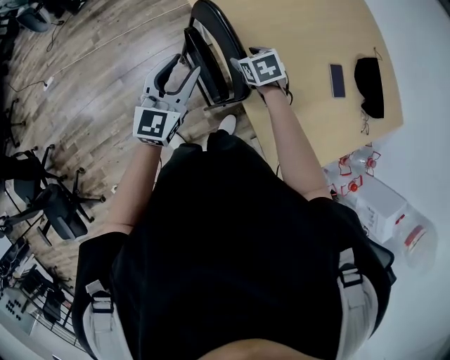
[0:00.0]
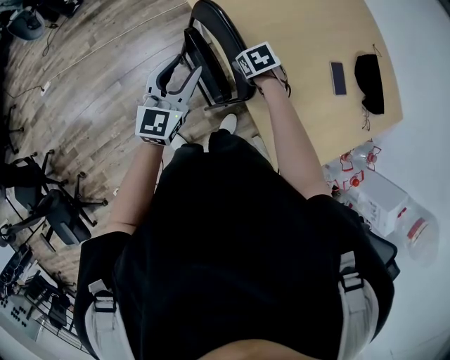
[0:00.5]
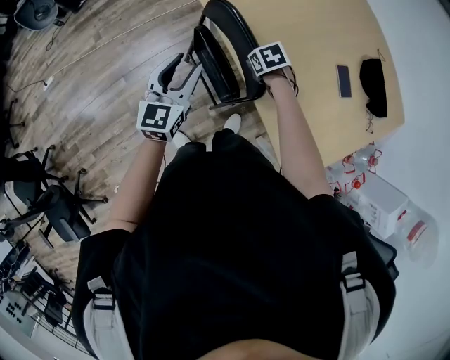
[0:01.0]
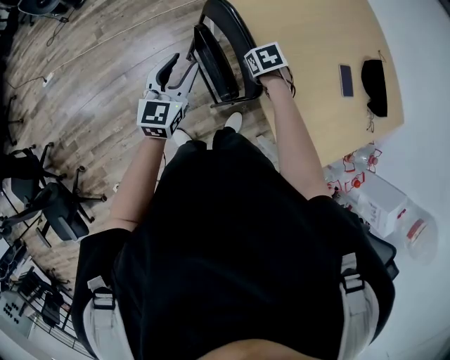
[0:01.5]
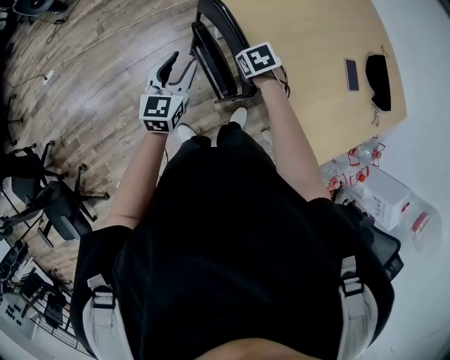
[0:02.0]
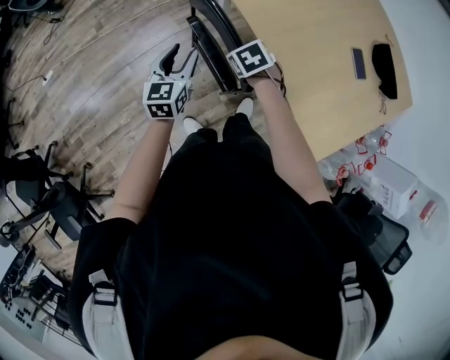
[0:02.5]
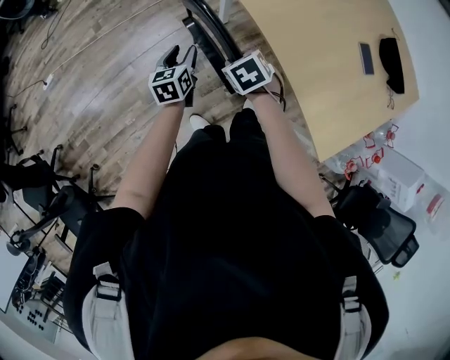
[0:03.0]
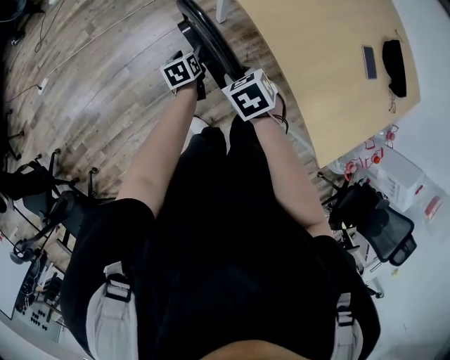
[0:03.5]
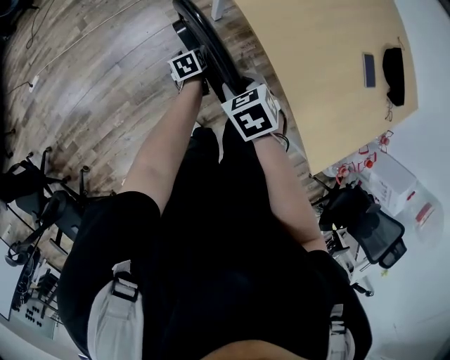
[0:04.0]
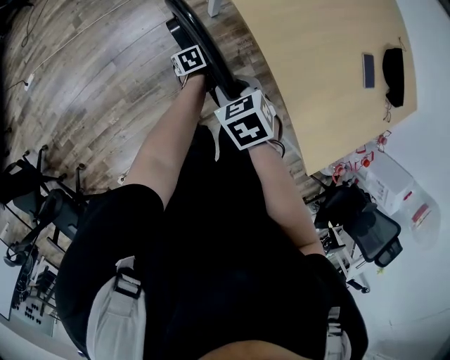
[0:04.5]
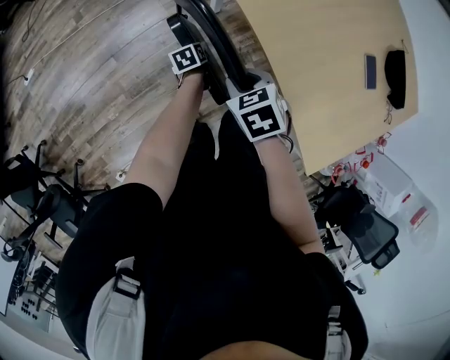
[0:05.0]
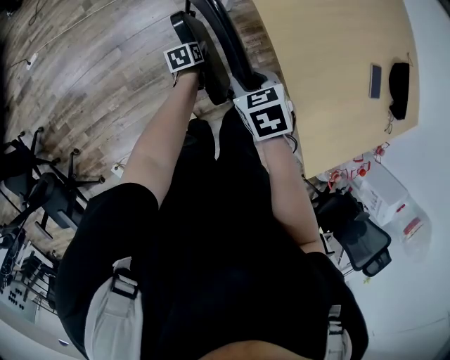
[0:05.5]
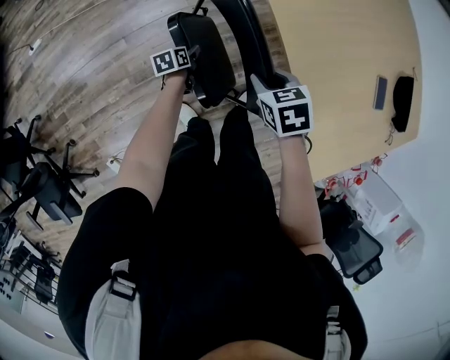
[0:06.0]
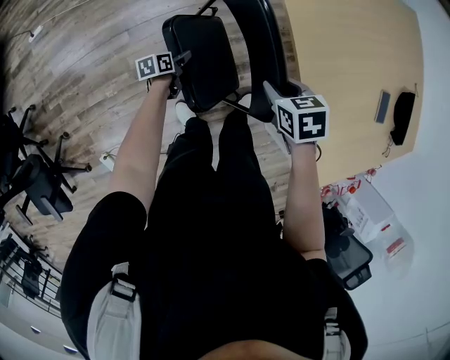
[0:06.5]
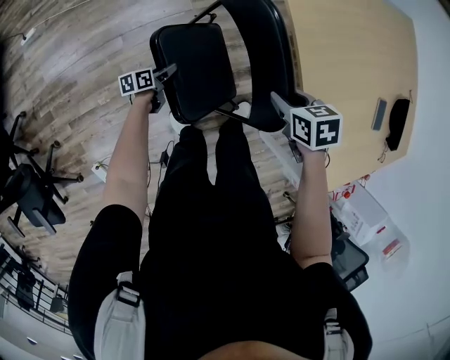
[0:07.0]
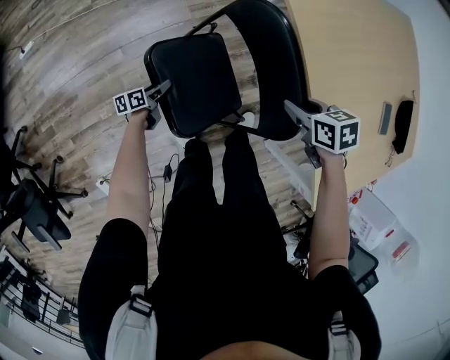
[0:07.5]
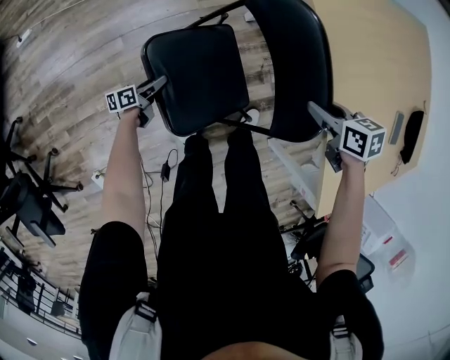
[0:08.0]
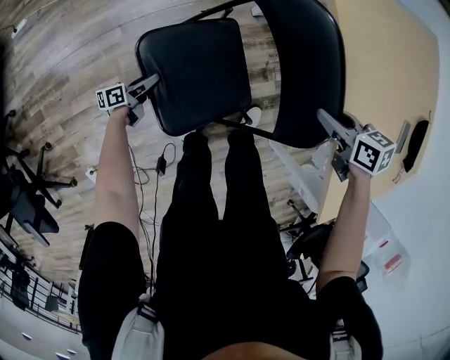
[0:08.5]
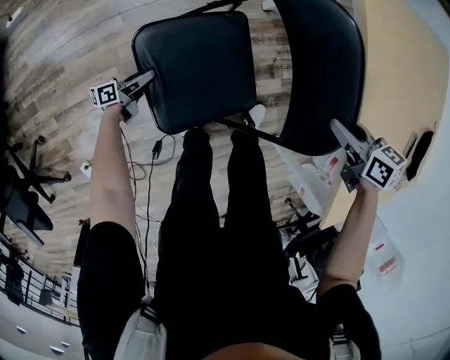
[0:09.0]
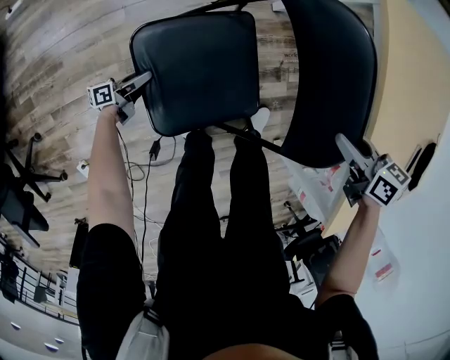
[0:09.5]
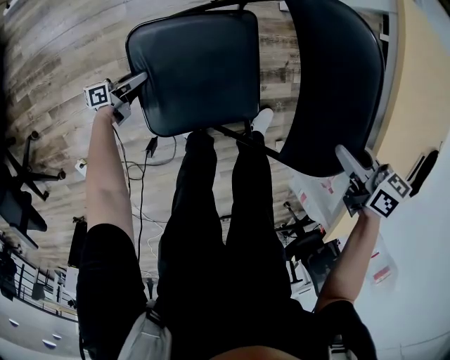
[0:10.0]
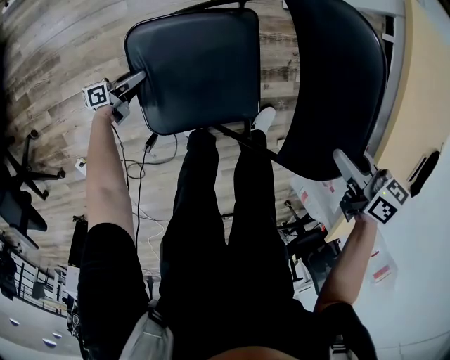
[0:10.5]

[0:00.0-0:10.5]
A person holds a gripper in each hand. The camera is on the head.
0:00.0 to 0:02.0: The right gripper moves to the left, roughly 10 cm, and closes up, while the left gripper moves to the left and downward, approximately 15 cm.
0:02.0 to 0:04.0: The right gripper shifts some 10 cm to the left. Meanwhile the left gripper is displaced downward by approximately 30 cm, tips its fingers downward by roughly 40 degrees, and opens its fingers.
0:04.0 to 0:06.5: The left gripper heads to the left, downward and backward, covering about 15 cm, and turns by roughly 20 degrees.
0:06.5 to 0:08.5: The left gripper heads downward and to the left, covering about 20 cm, and rotates some 20 degrees; the right gripper shifts roughly 10 cm downward.
0:08.5 to 0:10.5: The left gripper shifts about 15 cm downward and to the left, while the right gripper moves to the left and downward, approximately 10 cm.

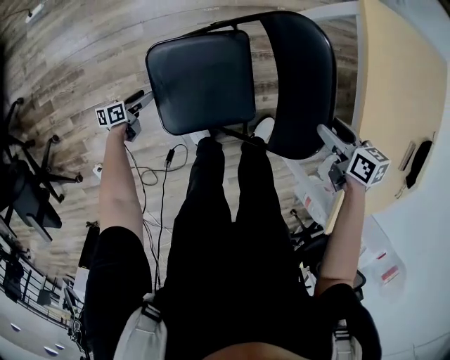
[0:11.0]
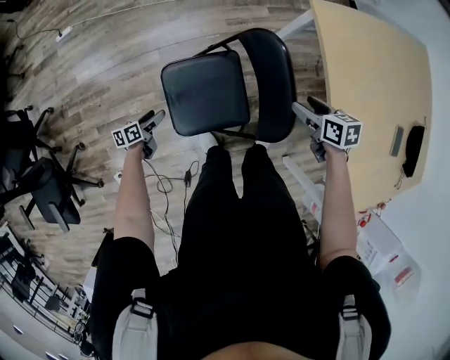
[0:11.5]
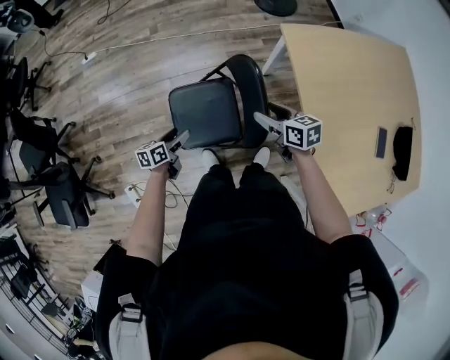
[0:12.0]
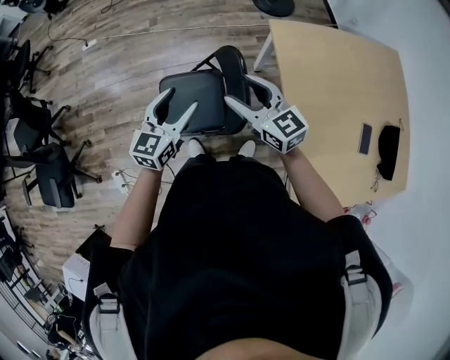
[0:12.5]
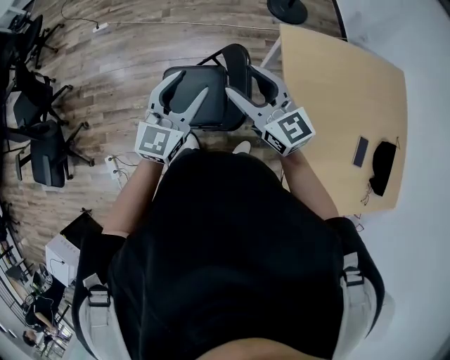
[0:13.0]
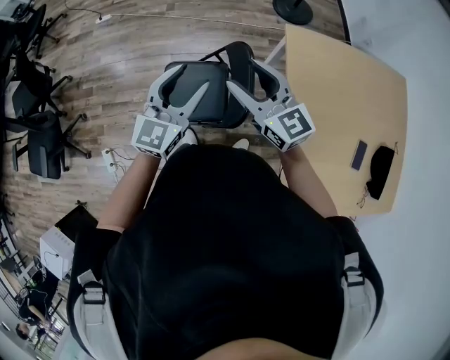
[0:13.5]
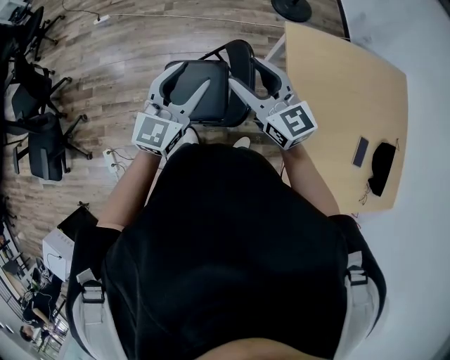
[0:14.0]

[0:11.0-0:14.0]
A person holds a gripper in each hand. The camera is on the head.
0:11.0 to 0:12.5: The right gripper travels upward by roughly 35 cm, and points its fingers some 40 degrees further upward, while the left gripper travels upward and to the right by roughly 70 cm, and twists some 50 degrees clockwise, seen from behind.
0:12.5 to 0:14.0: Both grippers move upward, about 5 cm.

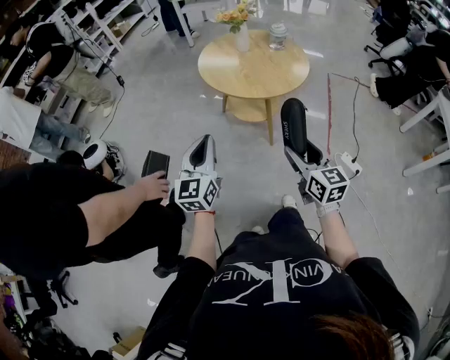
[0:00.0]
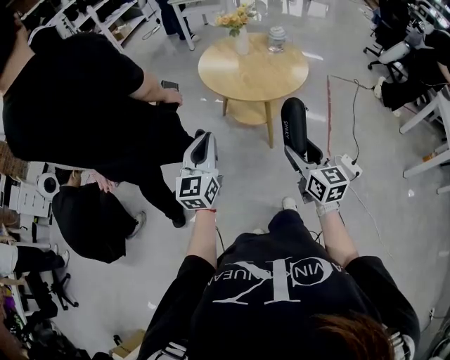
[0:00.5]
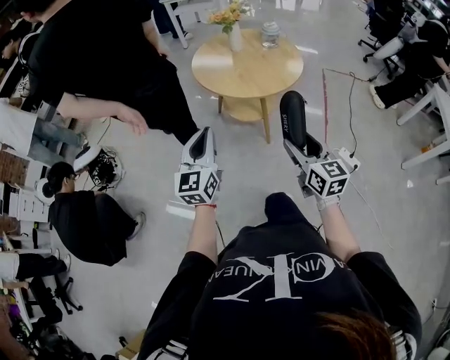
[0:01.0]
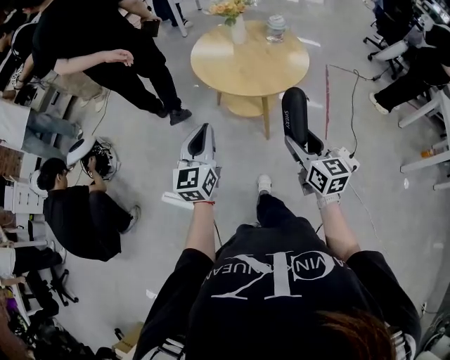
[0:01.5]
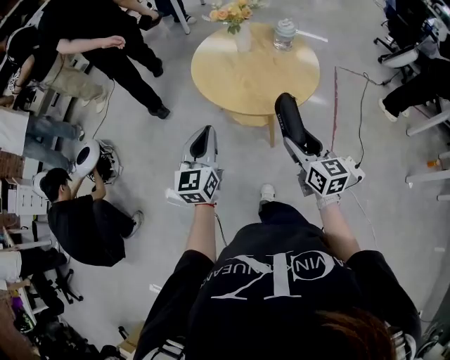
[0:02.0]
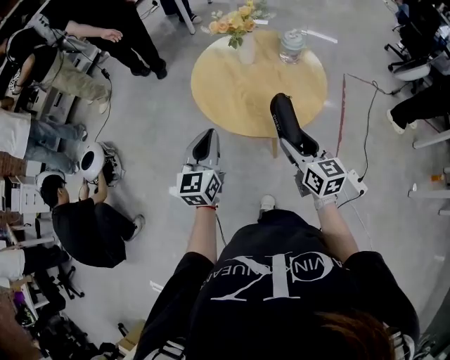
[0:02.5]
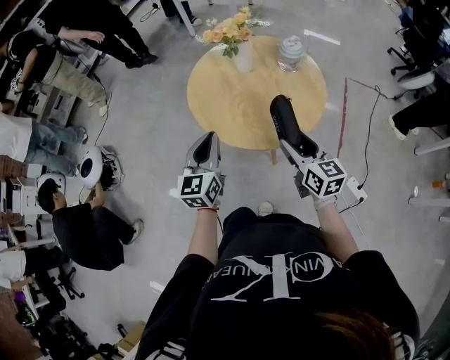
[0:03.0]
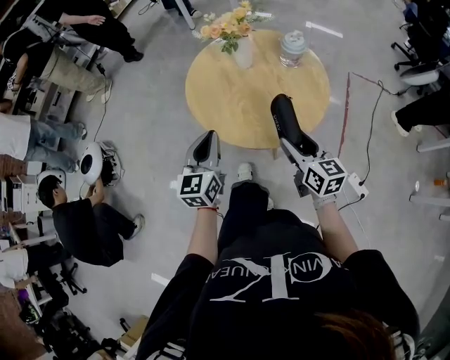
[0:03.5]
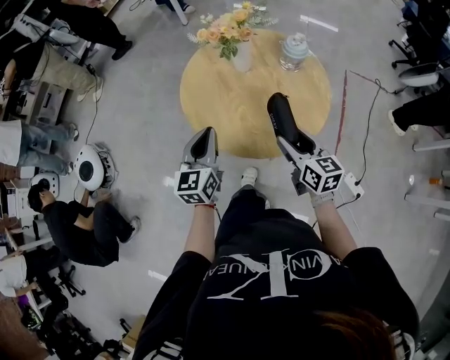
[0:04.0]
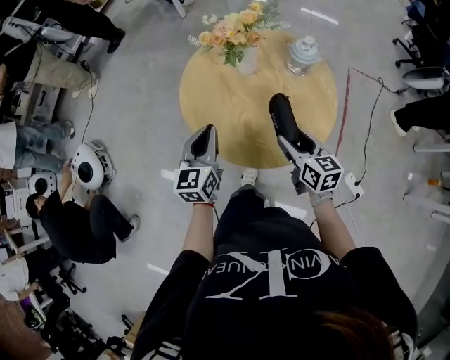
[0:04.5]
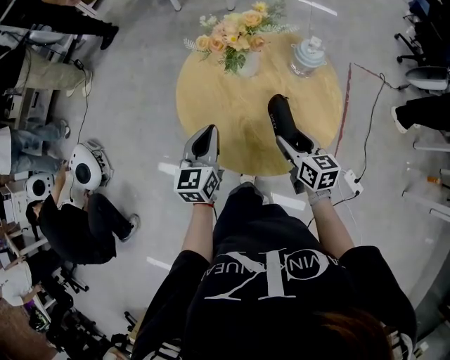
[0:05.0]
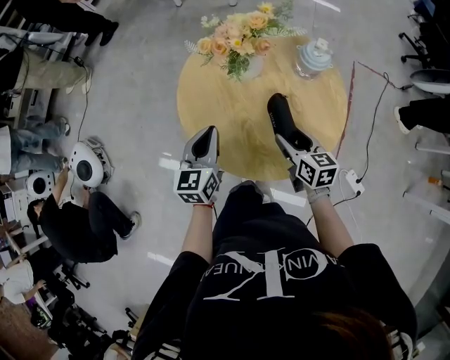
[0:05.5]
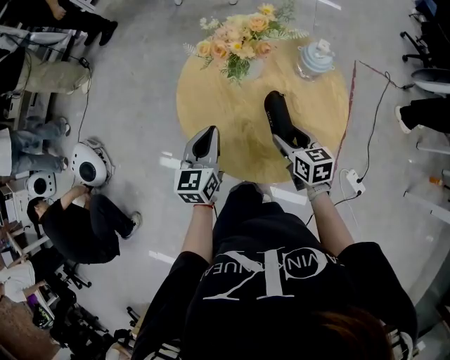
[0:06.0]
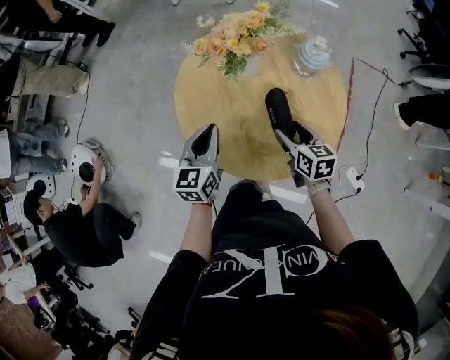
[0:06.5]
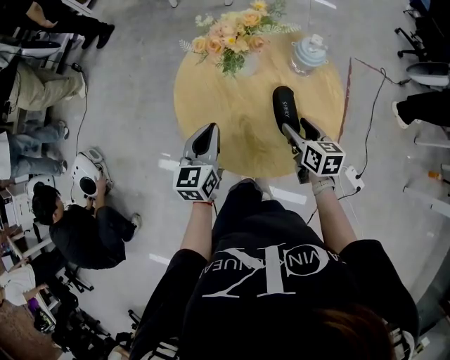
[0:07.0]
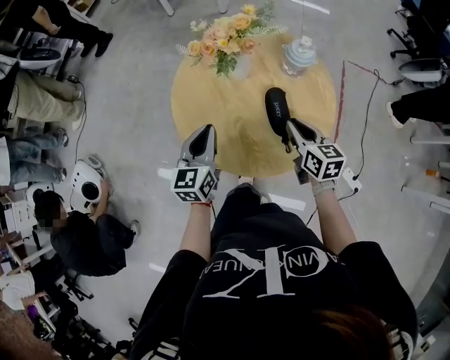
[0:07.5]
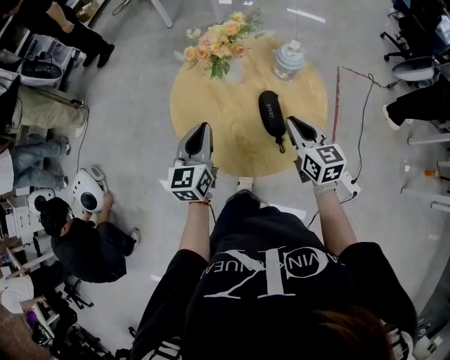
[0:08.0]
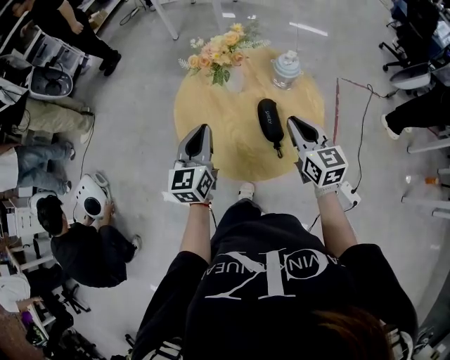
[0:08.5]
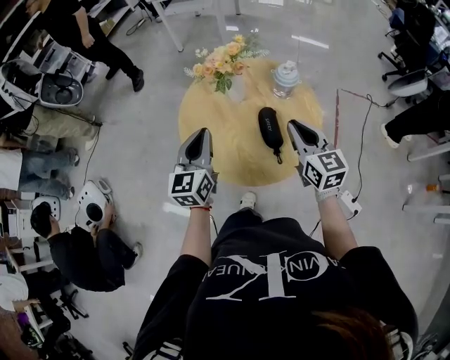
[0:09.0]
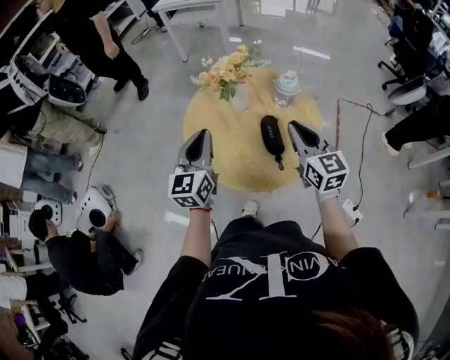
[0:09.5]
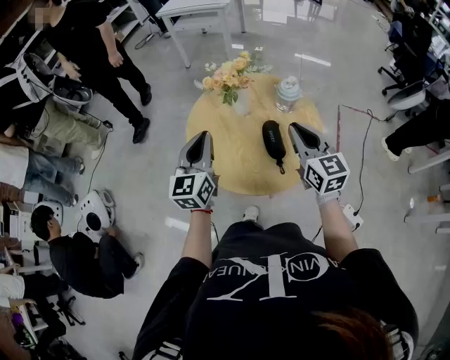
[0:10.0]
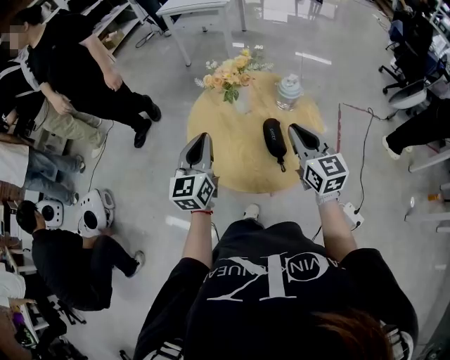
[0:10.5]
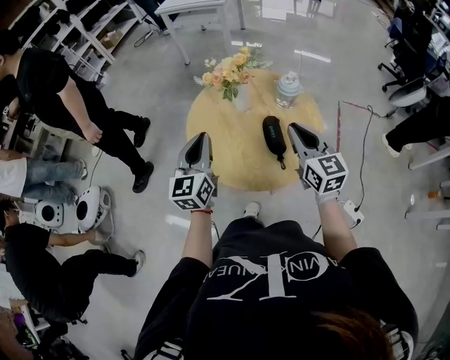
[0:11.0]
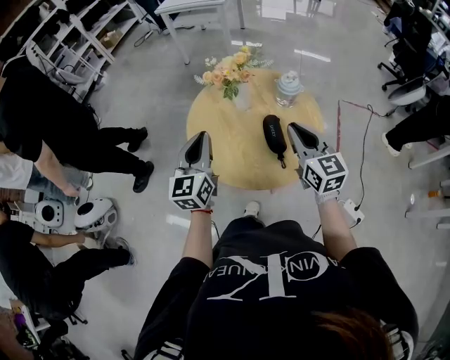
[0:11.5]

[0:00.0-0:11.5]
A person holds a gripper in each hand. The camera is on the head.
0:00.0 to 0:02.0: The two grippers go approximately 15 cm forward.
0:02.0 to 0:04.0: The grippers both shift forward by about 20 cm.
0:04.0 to 0:06.0: The two grippers go approximately 15 cm forward and downward.
0:06.0 to 0:07.5: The right gripper travels upward by approximately 5 cm, and closes its fingers.
0:07.5 to 0:09.5: The grippers both shift upward by roughly 15 cm. The right gripper rotates approximately 30 degrees.
0:09.5 to 0:11.5: The grippers stay close to where they were, moving slightly.

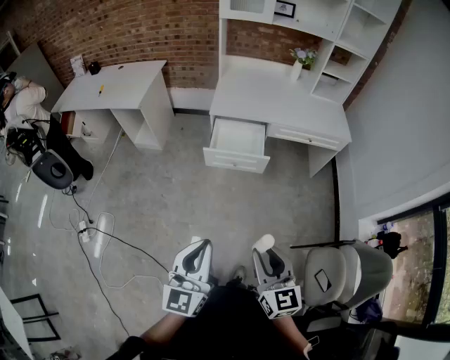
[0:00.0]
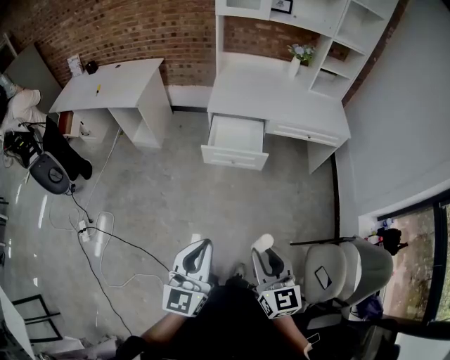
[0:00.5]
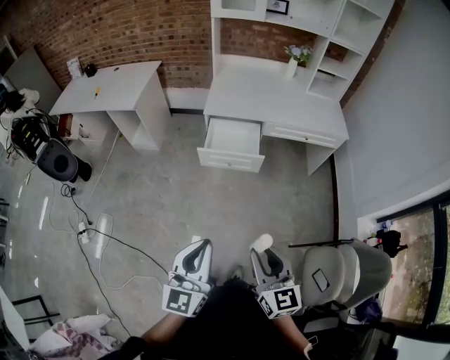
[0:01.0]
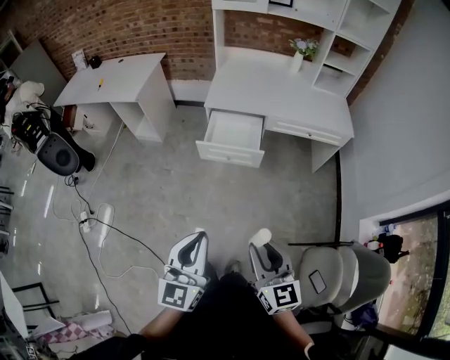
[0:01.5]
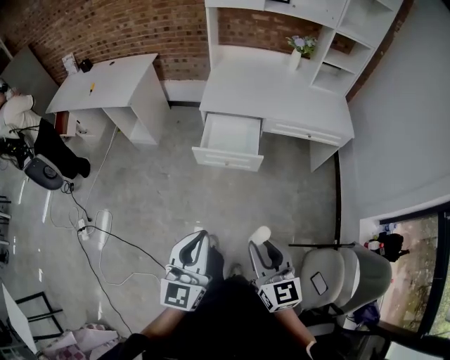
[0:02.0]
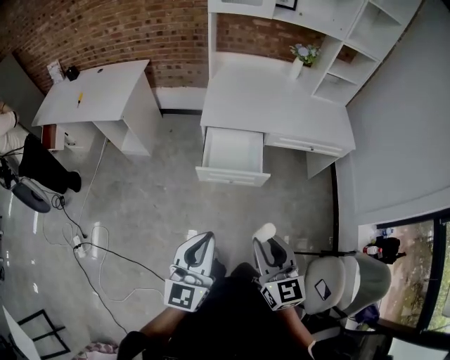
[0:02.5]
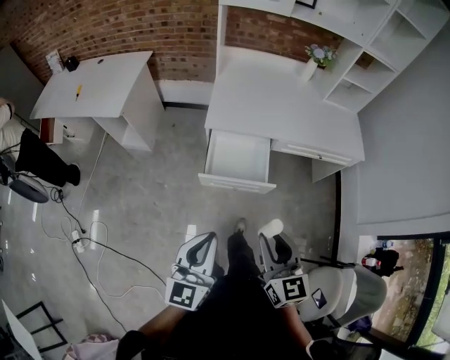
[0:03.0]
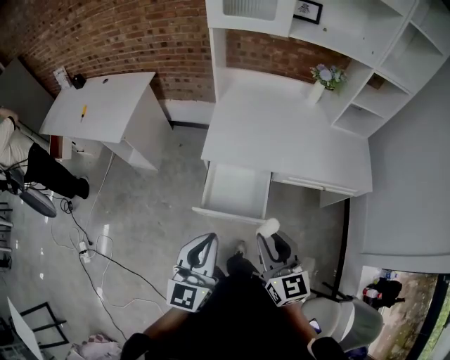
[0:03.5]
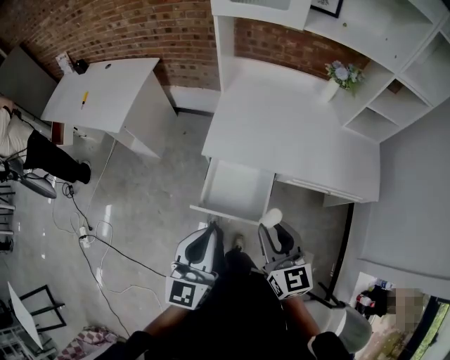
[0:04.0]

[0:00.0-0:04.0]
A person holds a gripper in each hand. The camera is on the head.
0:00.0 to 0:02.0: The two grippers go approximately 10 cm forward and to the right.
0:02.0 to 0:04.0: The pair of grippers is taken forward, some 40 cm.
